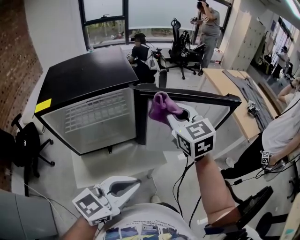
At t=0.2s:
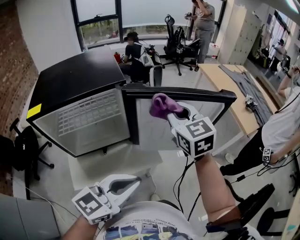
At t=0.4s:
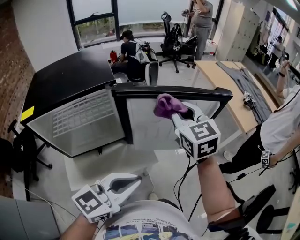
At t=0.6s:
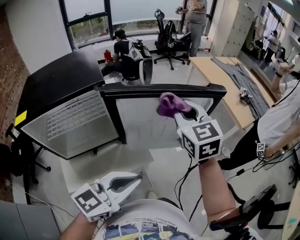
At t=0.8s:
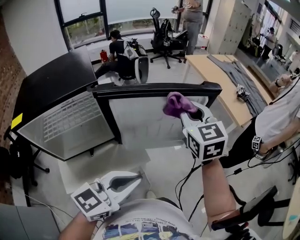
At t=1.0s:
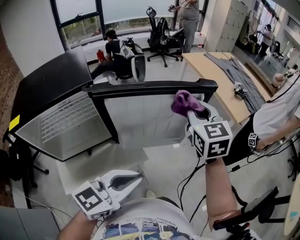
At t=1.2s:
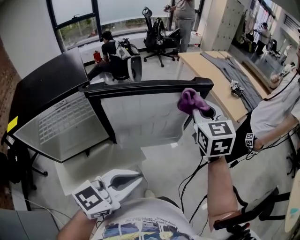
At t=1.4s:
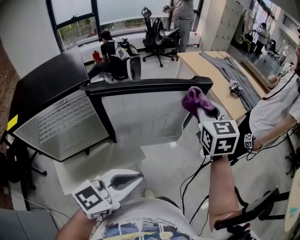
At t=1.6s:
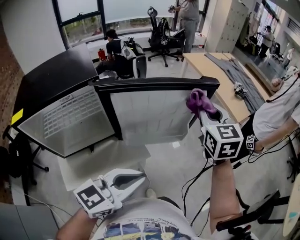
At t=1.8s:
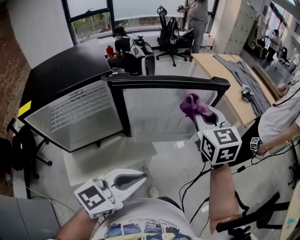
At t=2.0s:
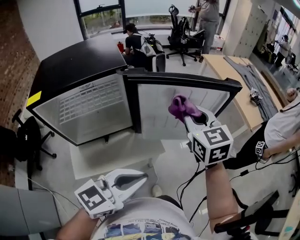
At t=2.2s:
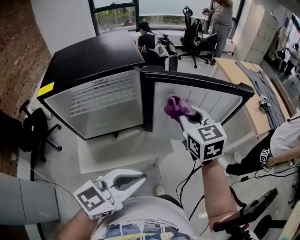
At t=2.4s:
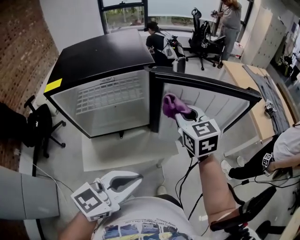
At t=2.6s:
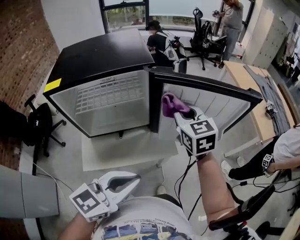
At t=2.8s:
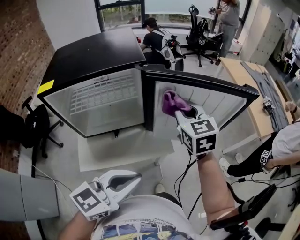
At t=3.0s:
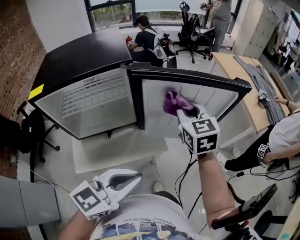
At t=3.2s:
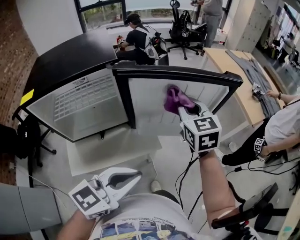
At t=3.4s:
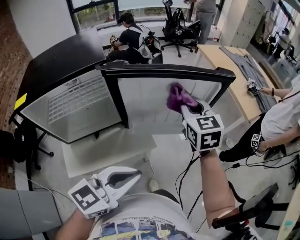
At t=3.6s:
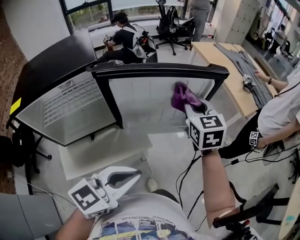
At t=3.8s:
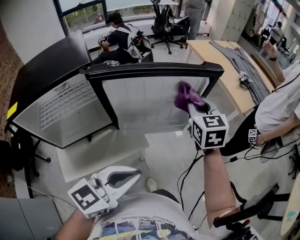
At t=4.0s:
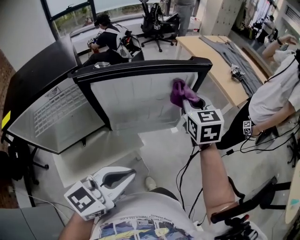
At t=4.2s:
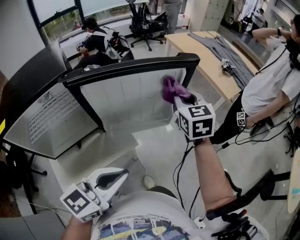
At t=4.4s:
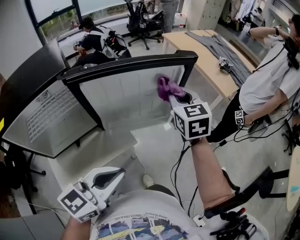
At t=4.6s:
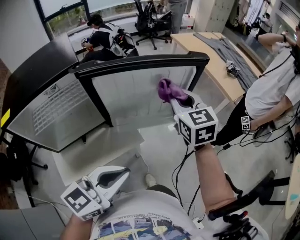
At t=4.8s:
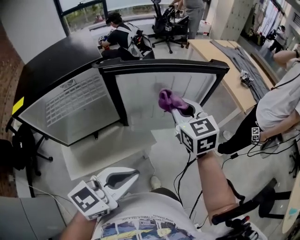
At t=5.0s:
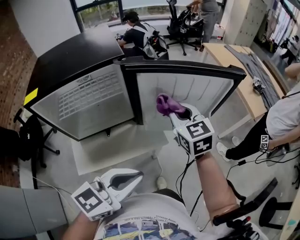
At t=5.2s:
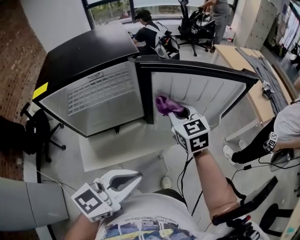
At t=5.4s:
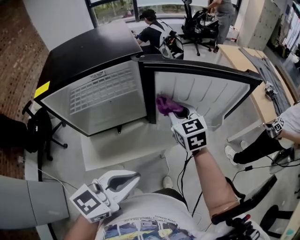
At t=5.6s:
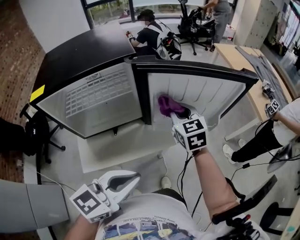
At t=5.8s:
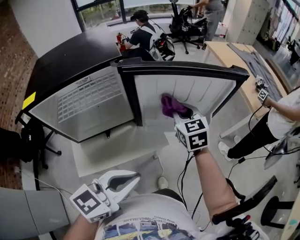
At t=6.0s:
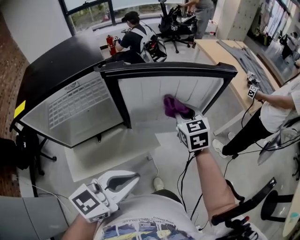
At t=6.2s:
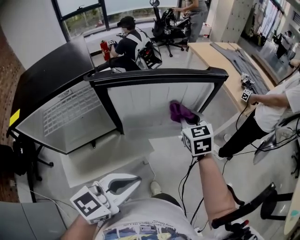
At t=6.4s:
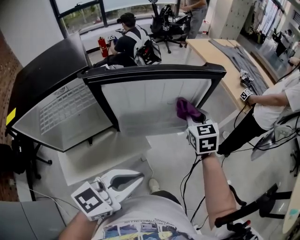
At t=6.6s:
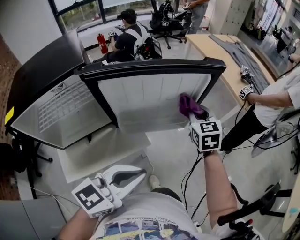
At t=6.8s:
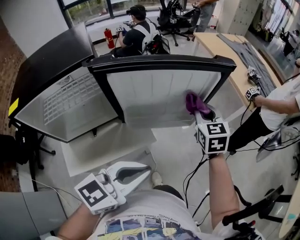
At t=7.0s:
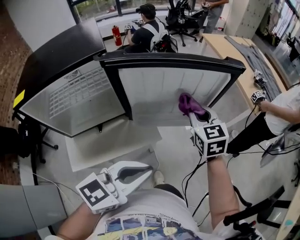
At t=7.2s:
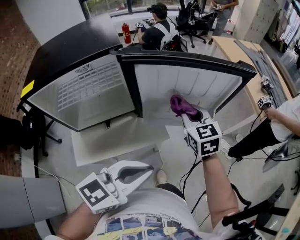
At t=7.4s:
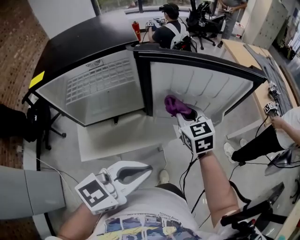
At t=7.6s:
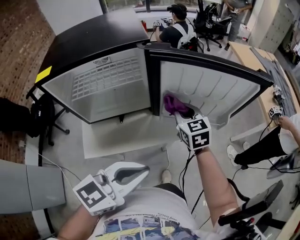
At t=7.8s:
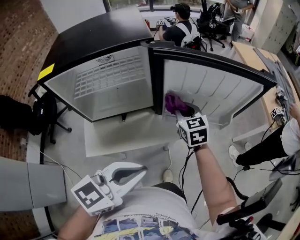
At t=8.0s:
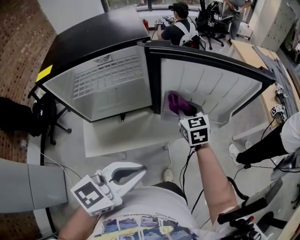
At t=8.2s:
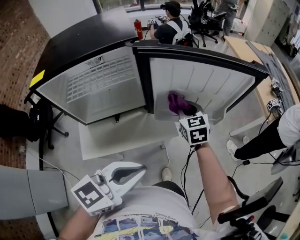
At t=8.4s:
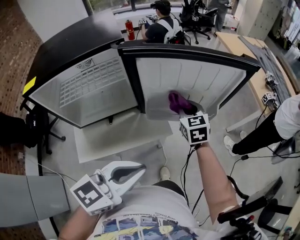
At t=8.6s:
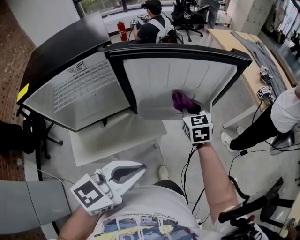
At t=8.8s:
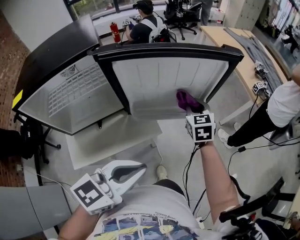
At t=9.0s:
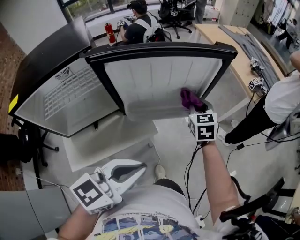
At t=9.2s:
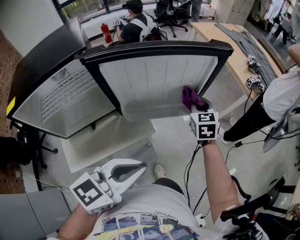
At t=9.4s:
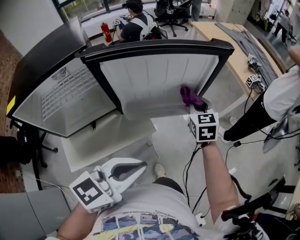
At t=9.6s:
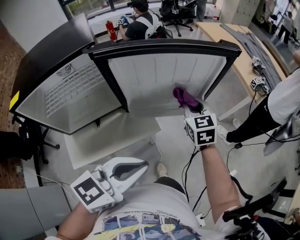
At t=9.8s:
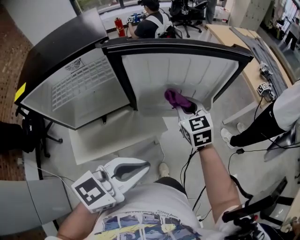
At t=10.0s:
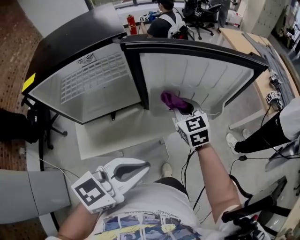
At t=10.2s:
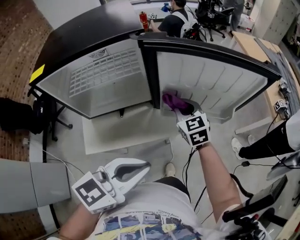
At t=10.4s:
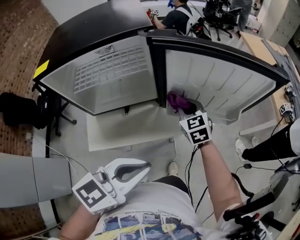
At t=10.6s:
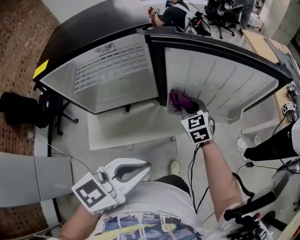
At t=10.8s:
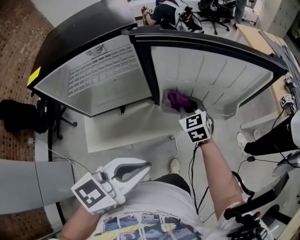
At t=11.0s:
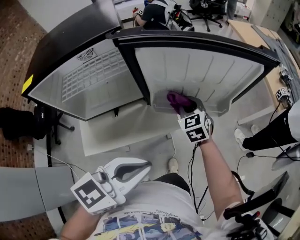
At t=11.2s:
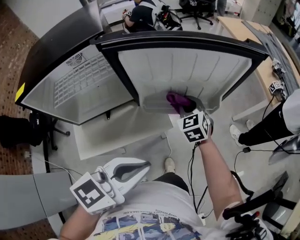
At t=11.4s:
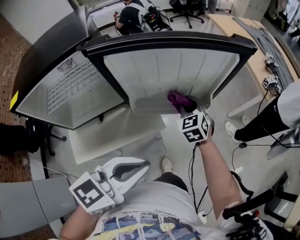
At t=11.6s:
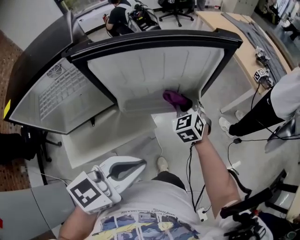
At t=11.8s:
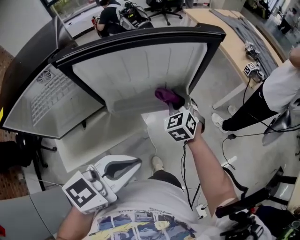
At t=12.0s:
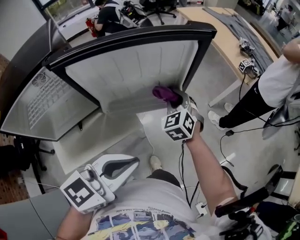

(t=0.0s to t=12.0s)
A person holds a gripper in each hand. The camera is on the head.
t=0.0s - t=1.6s: The left gripper is displaced to the right by some 10 cm. Meanwhile the right gripper heads to the right, covering some 20 cm, and swivels about 30 degrees.
t=1.6s - t=3.0s: The right gripper moves to the left, some 20 cm, and changes its angle by roughly 20 degrees. The left gripper shifts some 5 cm to the left.
t=3.0s - t=4.4s: The right gripper moves to the right, roughly 15 cm.
t=4.4s - t=6.0s: The left gripper goes to the left and returns, approximately 10 cm each way. Meanwhile the right gripper travels to the left and downward by roughly 15 cm.
t=6.0s - t=7.6s: The right gripper moves to the left and backward, some 15 cm. The left gripper moves some 5 cm to the right and comes back.
t=7.6s - t=9.0s: The left gripper goes approximately 5 cm to the right. The right gripper moves to the right, about 20 cm, and turns by some 30 degrees.
t=9.0s - t=10.4s: The left gripper ends up approximately 10 cm from where it was, while the right gripper ends up about 25 cm from where it was, and rotates roughly 30 degrees.
t=10.4s - t=12.0s: The right gripper changes place by about 20 cm, and rotates about 30 degrees; the left gripper moves some 15 cm.

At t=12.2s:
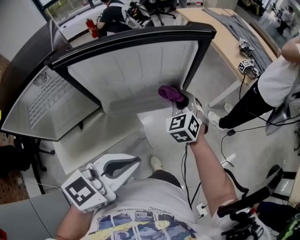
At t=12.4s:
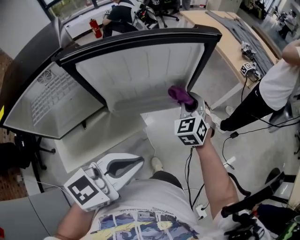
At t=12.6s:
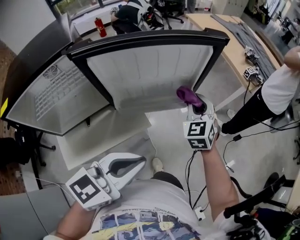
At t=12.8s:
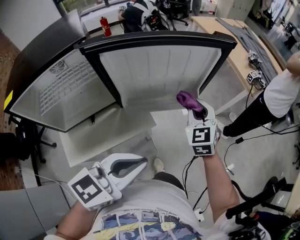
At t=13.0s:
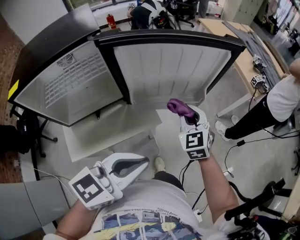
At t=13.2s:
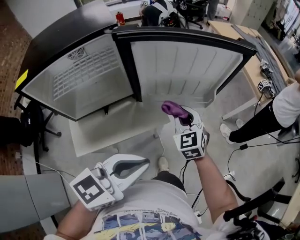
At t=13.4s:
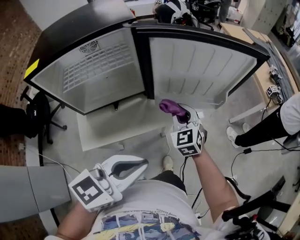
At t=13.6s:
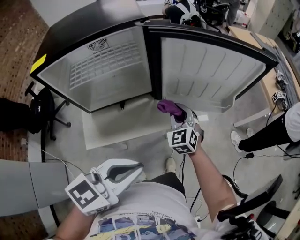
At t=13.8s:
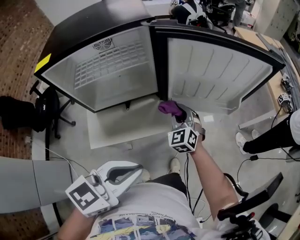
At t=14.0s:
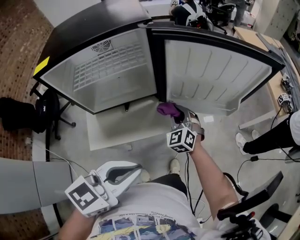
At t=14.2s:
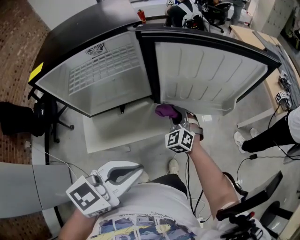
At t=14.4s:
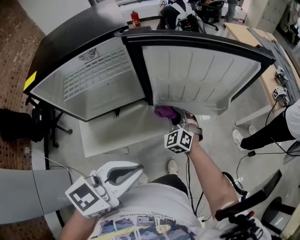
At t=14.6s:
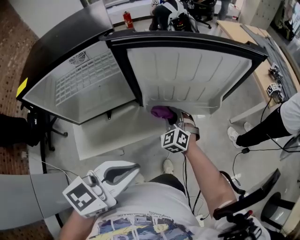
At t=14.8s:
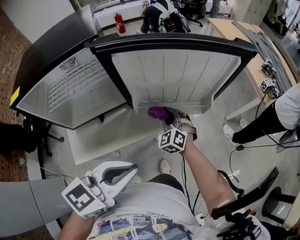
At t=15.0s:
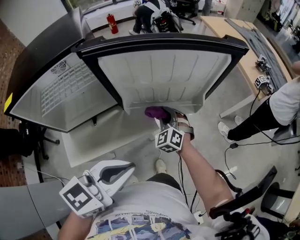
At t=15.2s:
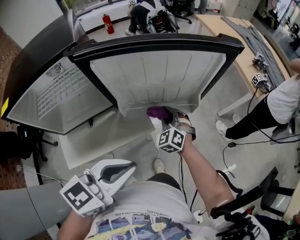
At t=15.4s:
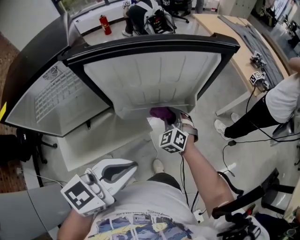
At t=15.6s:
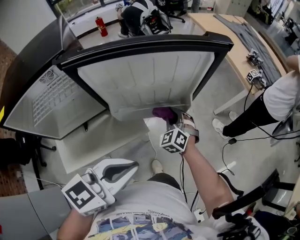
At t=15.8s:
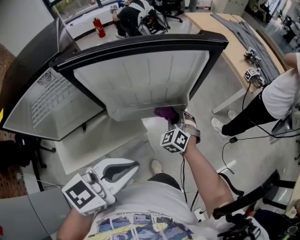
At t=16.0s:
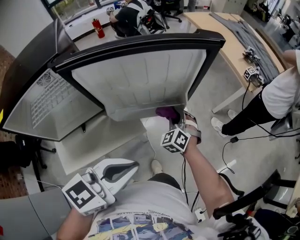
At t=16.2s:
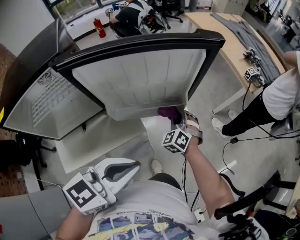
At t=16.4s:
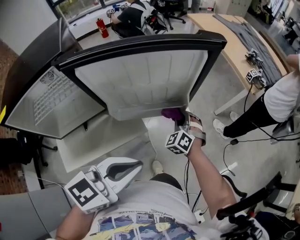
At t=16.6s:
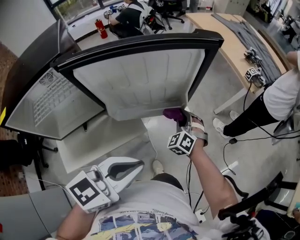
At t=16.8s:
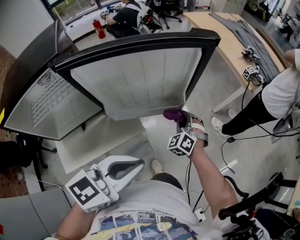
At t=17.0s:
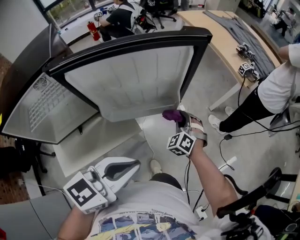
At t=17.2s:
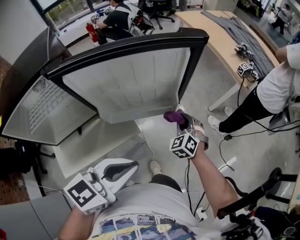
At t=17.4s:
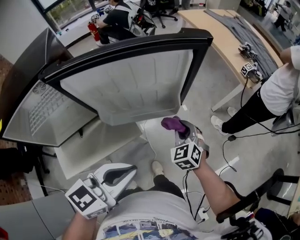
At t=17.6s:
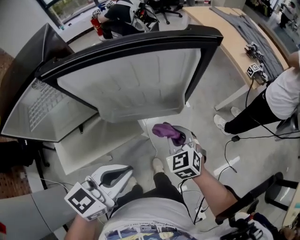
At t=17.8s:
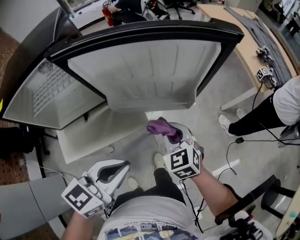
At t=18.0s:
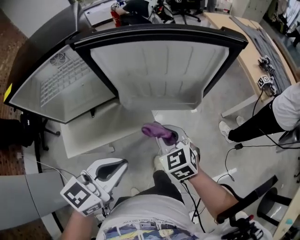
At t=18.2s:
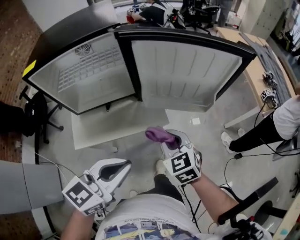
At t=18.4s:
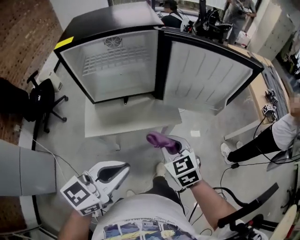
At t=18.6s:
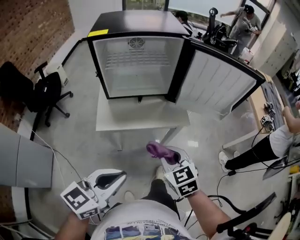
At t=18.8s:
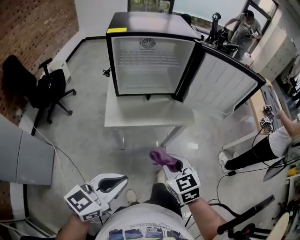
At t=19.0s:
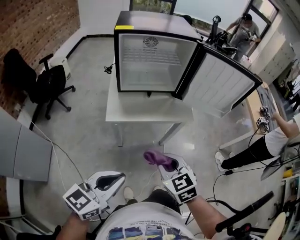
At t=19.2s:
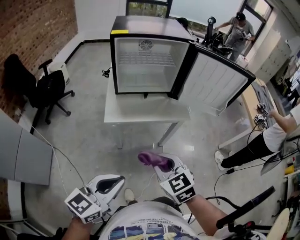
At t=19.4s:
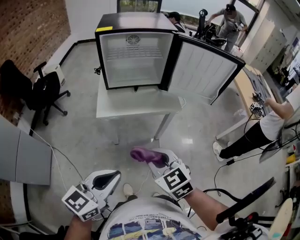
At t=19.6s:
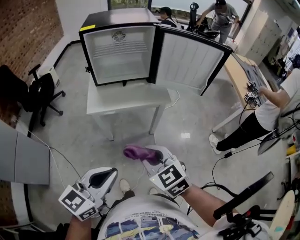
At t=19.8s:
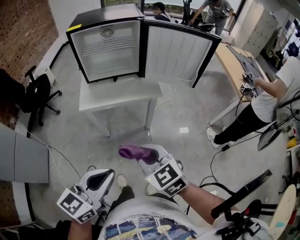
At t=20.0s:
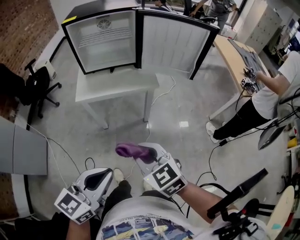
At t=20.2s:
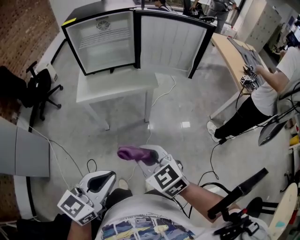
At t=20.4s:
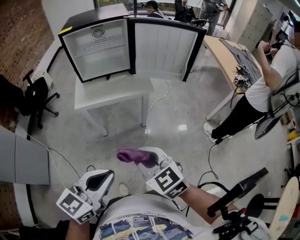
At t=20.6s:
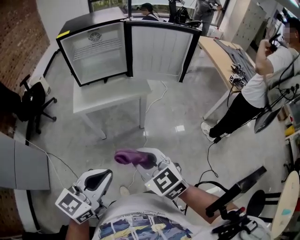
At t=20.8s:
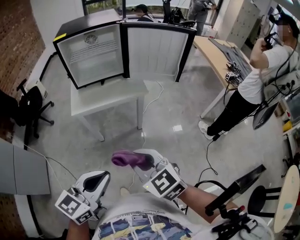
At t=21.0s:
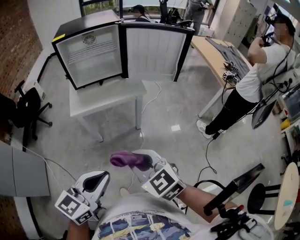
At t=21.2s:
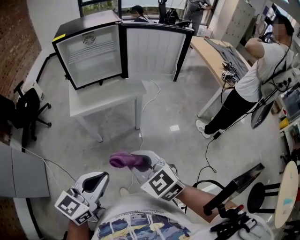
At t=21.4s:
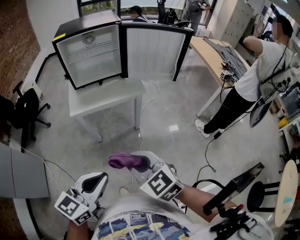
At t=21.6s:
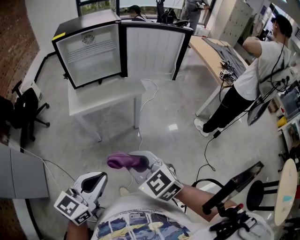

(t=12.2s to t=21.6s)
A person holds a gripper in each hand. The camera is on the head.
t=12.2s - t=13.8s: The left gripper heads backward and to the left, covering roughly 15 cm; the right gripper moves to the left and backward, some 25 cm, and turns by approximately 20 degrees.
t=13.8s - t=15.4s: The right gripper is displaced to the right and forward by roughly 15 cm. Meanwhile the left gripper travels forward and to the right by roughly 15 cm.
t=15.4s - t=17.0s: The right gripper travels to the right by approximately 10 cm.
t=17.0s - t=18.4s: The right gripper moves some 35 cm, and changes its angle by approximately 50 degrees. The left gripper changes place by about 25 cm, and rotates roughly 30 degrees.
t=18.4s - t=20.0s: The two grippers go roughly 25 cm backward.
t=20.0s - t=21.6s: The left gripper changes place by some 5 cm, while the right gripper moves about 5 cm.

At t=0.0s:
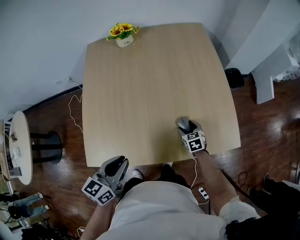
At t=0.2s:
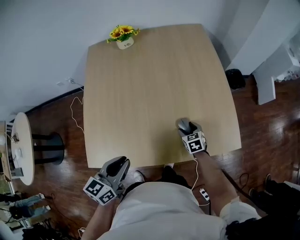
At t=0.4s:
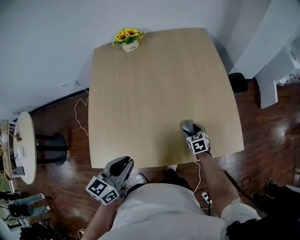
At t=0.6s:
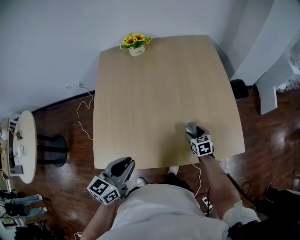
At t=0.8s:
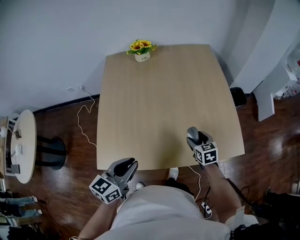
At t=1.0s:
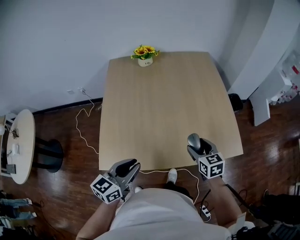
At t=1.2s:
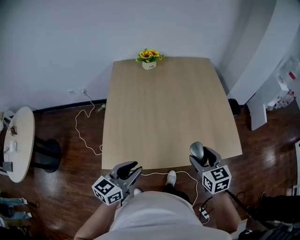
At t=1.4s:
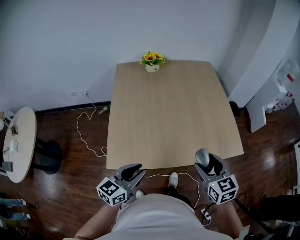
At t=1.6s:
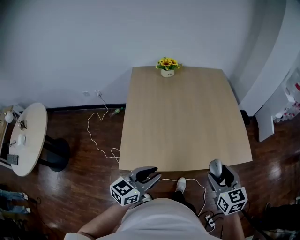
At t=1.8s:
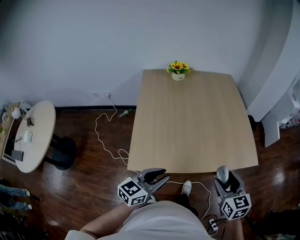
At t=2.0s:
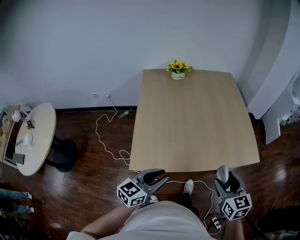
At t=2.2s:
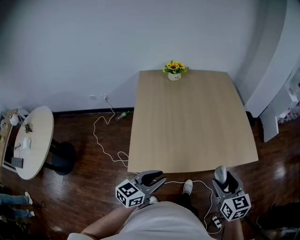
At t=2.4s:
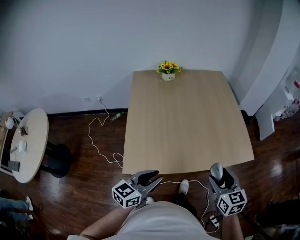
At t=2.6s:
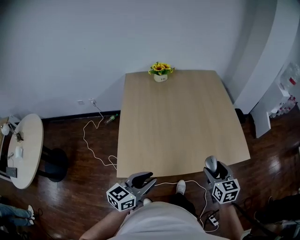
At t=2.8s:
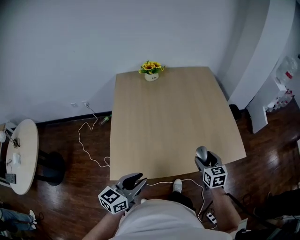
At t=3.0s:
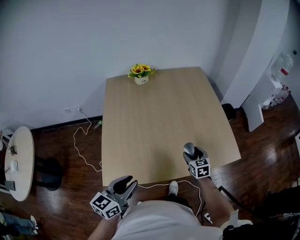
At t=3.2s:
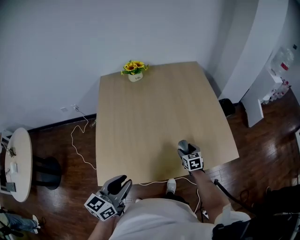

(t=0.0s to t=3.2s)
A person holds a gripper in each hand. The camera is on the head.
t=0.0s - t=1.6s: The left gripper is displaced backward and to the left by approximately 15 cm, while the right gripper travels upward and backward by about 40 cm, and rotates some 20 degrees.
t=1.6s - t=3.2s: The left gripper is displaced forward by some 5 cm, while the right gripper heads downward and forward, covering some 35 cm.
